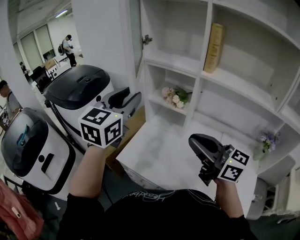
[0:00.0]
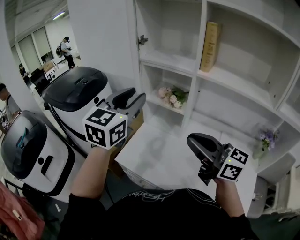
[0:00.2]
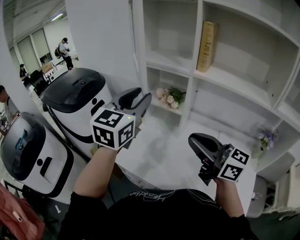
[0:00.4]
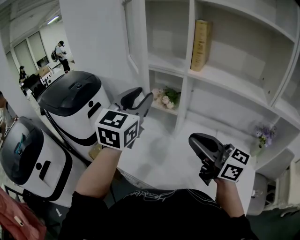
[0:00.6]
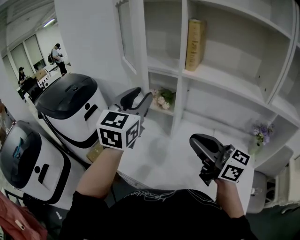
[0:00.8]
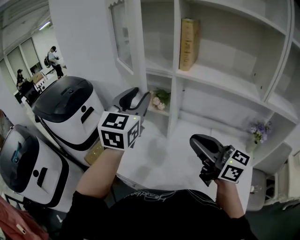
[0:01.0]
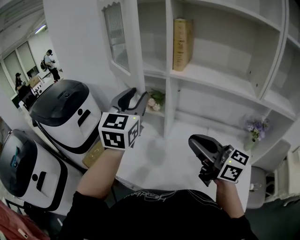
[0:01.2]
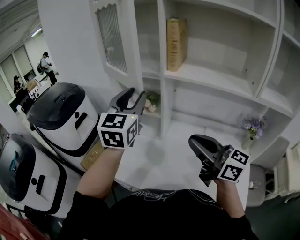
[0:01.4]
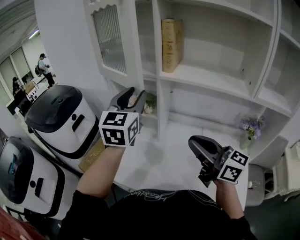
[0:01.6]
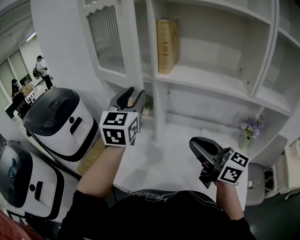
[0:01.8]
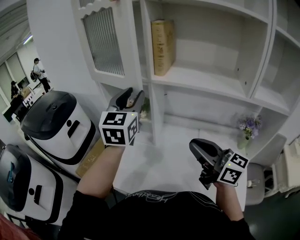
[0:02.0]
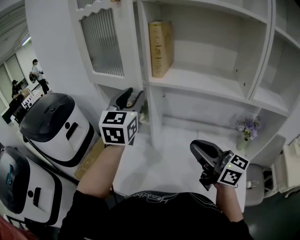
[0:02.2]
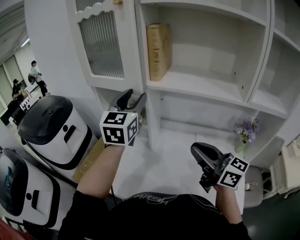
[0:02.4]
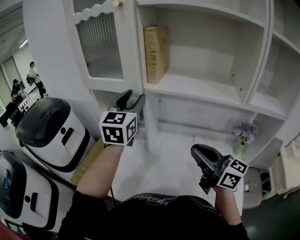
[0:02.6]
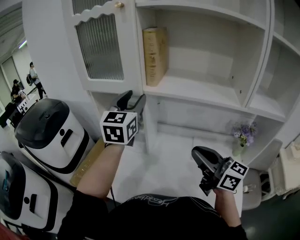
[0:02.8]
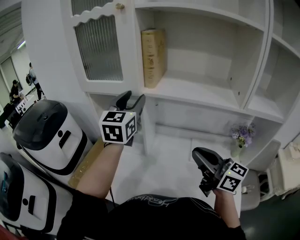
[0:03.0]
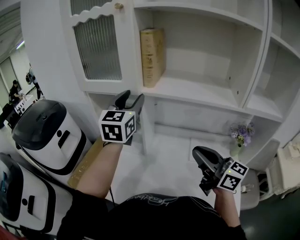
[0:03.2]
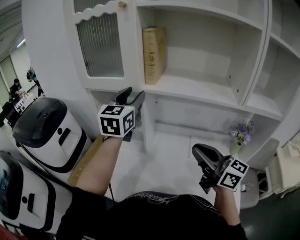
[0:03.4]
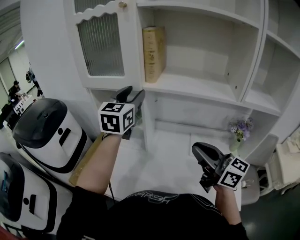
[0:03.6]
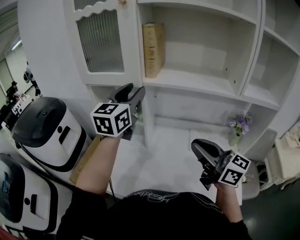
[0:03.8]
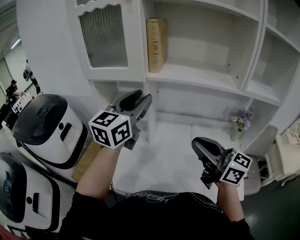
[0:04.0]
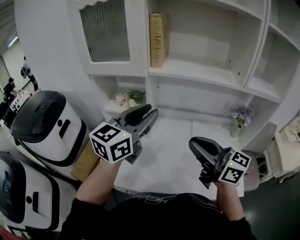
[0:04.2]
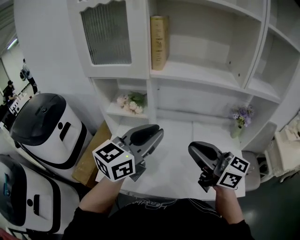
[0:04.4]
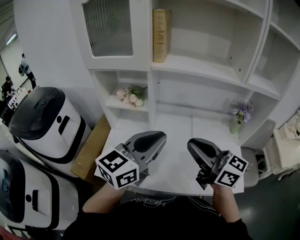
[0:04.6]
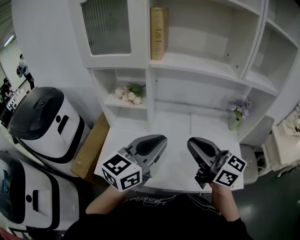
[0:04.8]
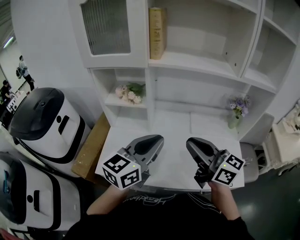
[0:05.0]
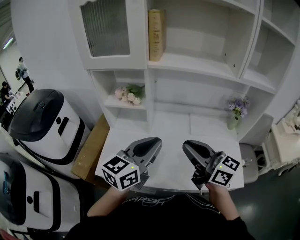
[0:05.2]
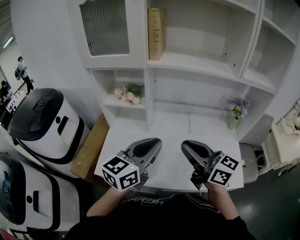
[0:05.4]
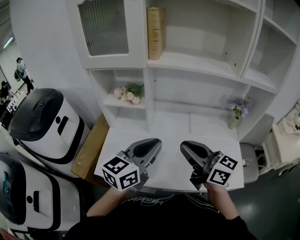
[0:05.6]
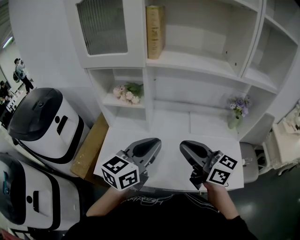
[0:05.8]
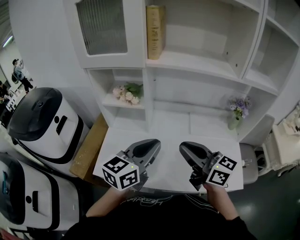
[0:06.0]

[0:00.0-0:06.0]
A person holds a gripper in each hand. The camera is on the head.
0.0 to 1.6 s: Both grippers travel together to the right, roughly 15 cm.
1.6 to 3.0 s: The left gripper goes approximately 10 cm to the right and forward. Meanwhile the right gripper travels to the right by about 10 cm.
3.0 to 4.4 s: The right gripper is displaced to the left and backward by about 10 cm, while the left gripper goes about 20 cm backward, rotates about 40 degrees, and closes its fingers.
4.4 to 6.0 s: The left gripper goes some 10 cm downward. Meanwhile the right gripper goes approximately 5 cm downward.

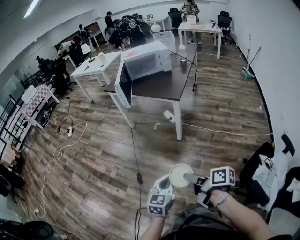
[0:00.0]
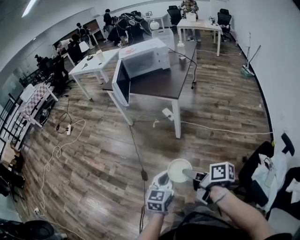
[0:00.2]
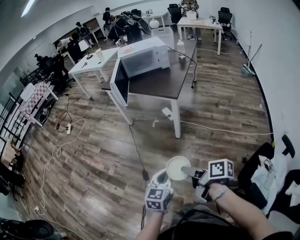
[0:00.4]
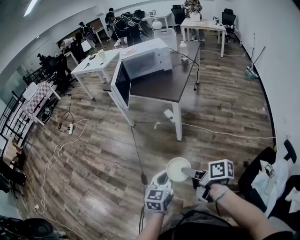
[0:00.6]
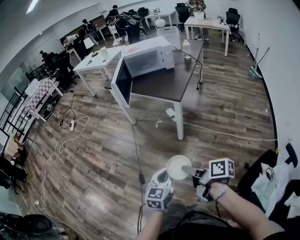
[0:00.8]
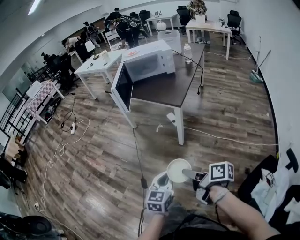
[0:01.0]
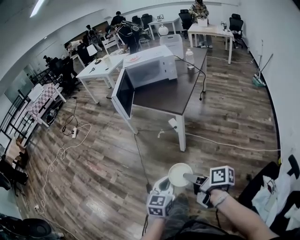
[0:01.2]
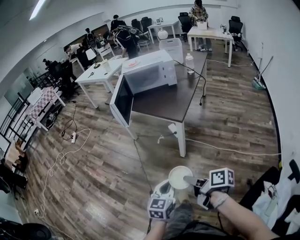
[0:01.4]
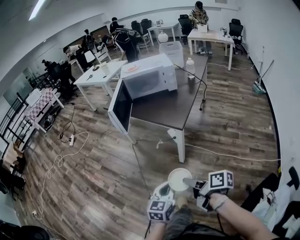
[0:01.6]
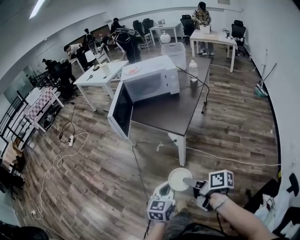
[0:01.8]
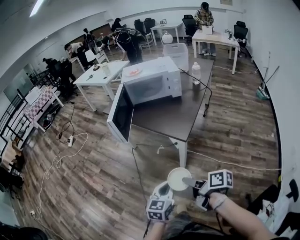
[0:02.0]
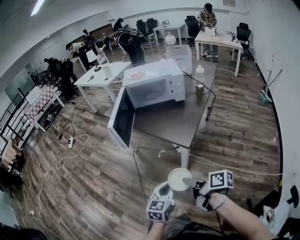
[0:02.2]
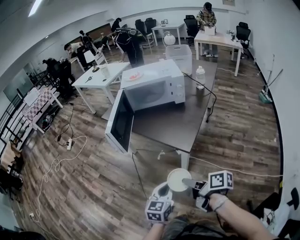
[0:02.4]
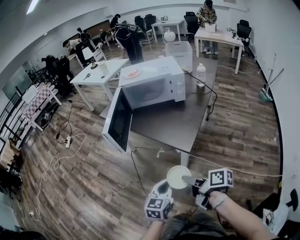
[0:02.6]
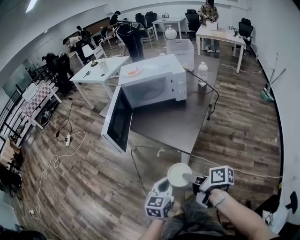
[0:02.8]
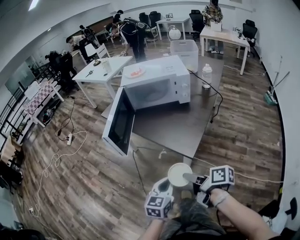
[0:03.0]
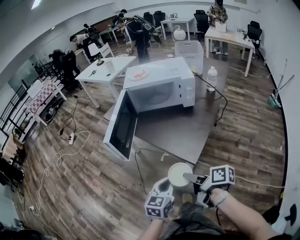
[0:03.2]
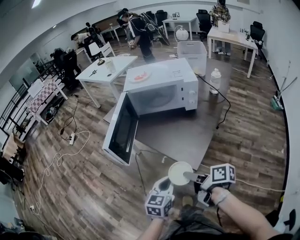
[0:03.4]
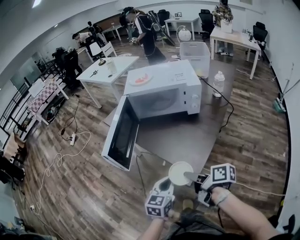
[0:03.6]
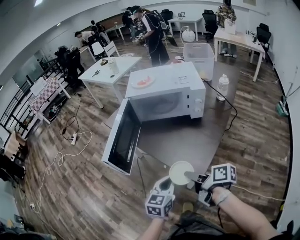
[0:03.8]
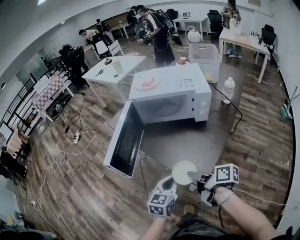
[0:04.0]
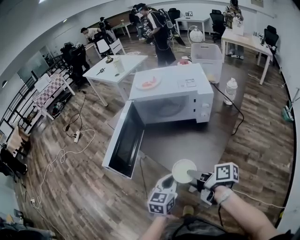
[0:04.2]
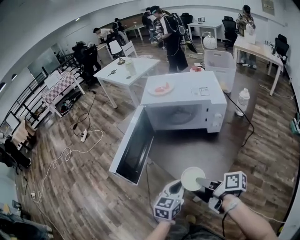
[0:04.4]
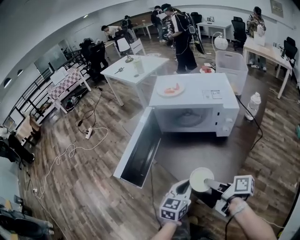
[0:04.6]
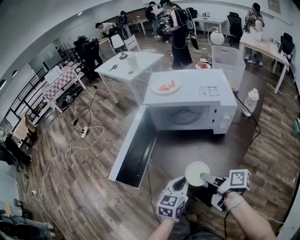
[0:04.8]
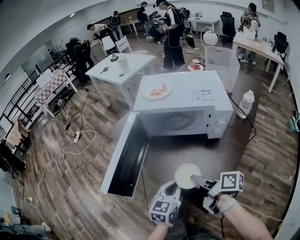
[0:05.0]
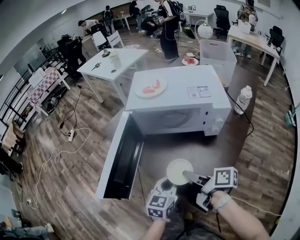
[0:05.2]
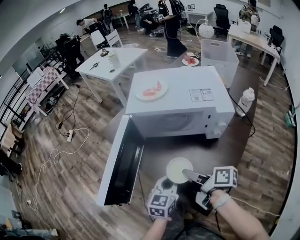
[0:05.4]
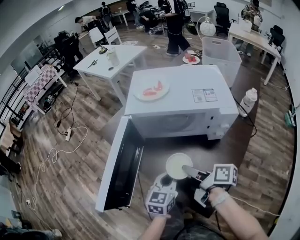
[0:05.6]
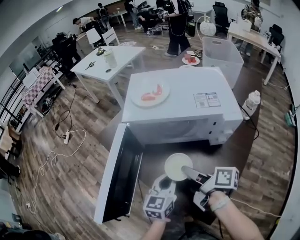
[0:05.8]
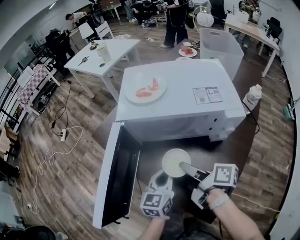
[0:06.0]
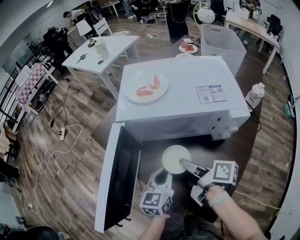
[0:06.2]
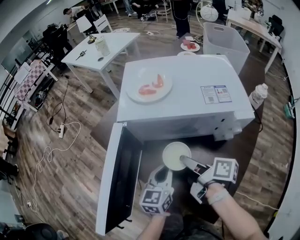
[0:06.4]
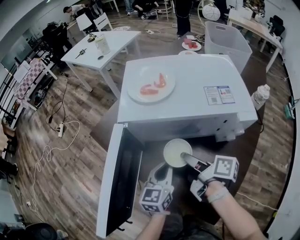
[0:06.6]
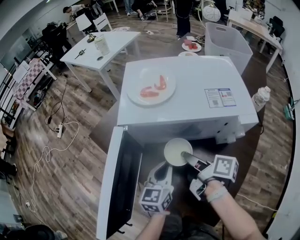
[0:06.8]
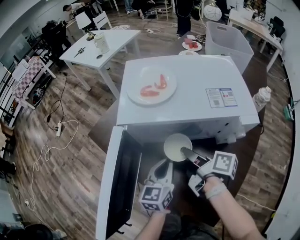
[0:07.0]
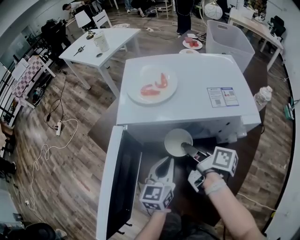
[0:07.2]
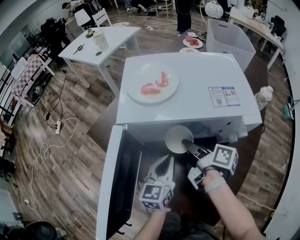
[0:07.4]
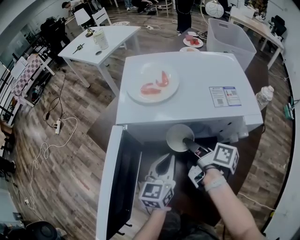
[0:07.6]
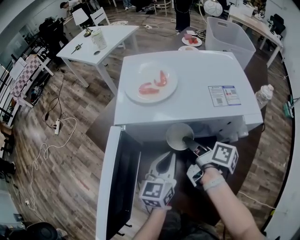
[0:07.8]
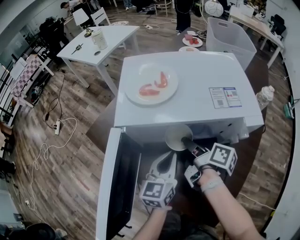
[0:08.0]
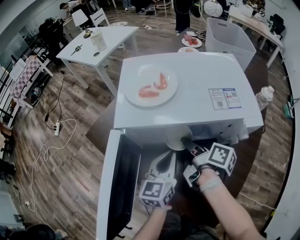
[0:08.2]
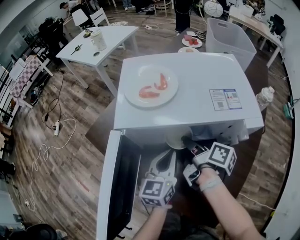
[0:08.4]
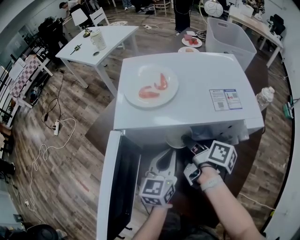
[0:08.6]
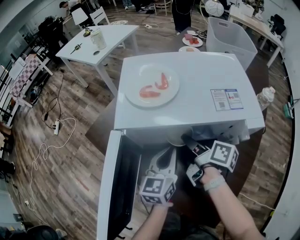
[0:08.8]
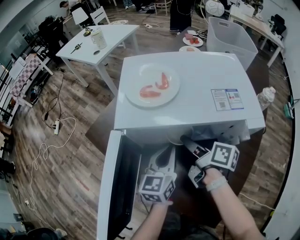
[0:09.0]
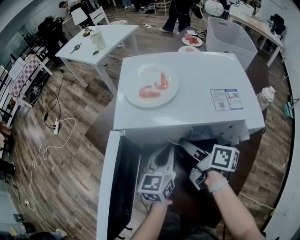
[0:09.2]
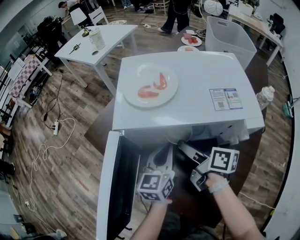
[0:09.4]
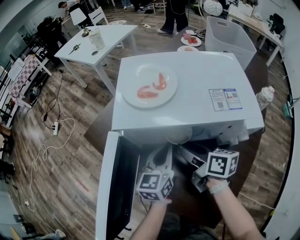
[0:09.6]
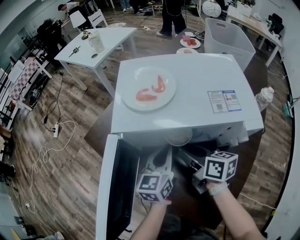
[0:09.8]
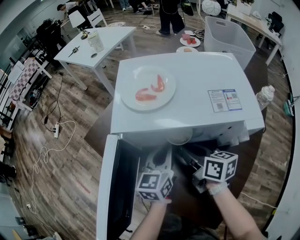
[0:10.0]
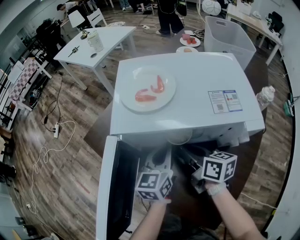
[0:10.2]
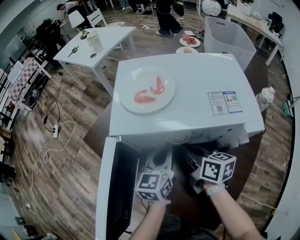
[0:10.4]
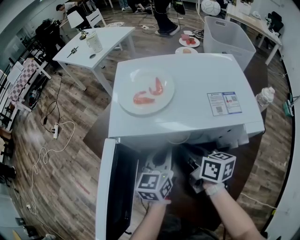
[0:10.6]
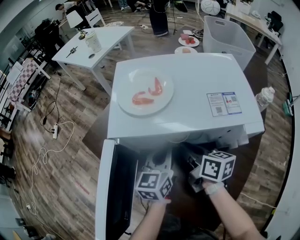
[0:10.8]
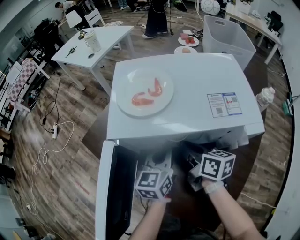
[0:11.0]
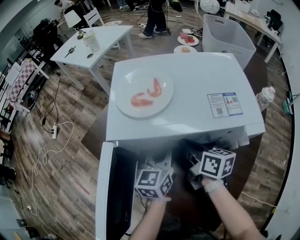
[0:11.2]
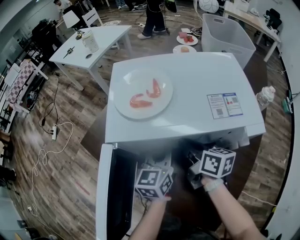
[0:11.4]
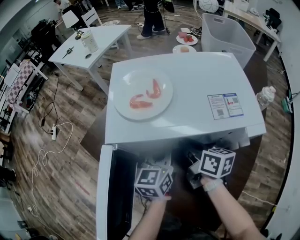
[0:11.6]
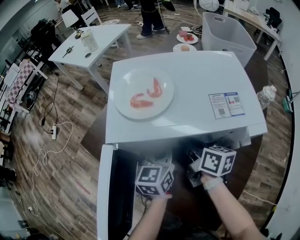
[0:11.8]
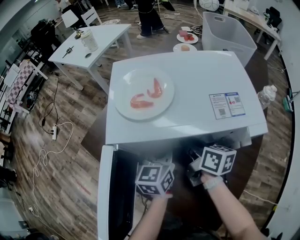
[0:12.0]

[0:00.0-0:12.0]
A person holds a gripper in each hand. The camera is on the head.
0.0 to 1.6 s: The two grippers go approximately 20 cm forward and to the right.
1.6 to 3.0 s: Both grippers travel together forward, about 25 cm.
3.0 to 4.4 s: The grippers both shift forward by some 20 cm.
4.4 to 6.0 s: Both grippers travel together forward, roughly 20 cm.
6.0 to 7.6 s: The grippers both shift forward by roughly 10 cm.
7.6 to 9.0 s: The grippers move only a little.
9.0 to 10.4 s: The right gripper changes its angle by roughly 30 degrees, and closes.
10.4 to 12.0 s: The grippers make only small movements.

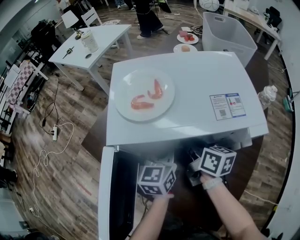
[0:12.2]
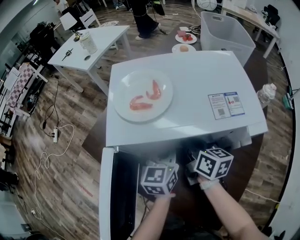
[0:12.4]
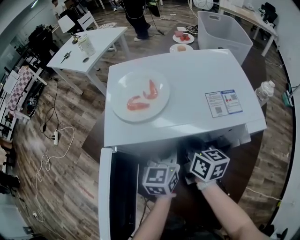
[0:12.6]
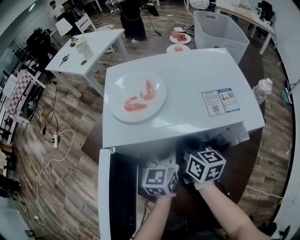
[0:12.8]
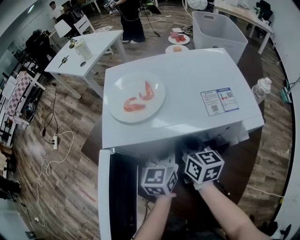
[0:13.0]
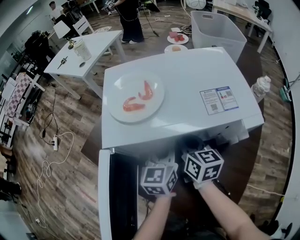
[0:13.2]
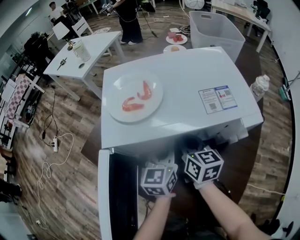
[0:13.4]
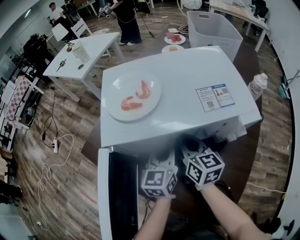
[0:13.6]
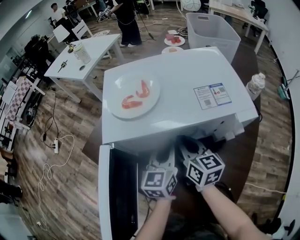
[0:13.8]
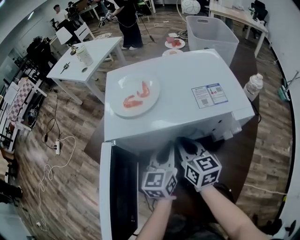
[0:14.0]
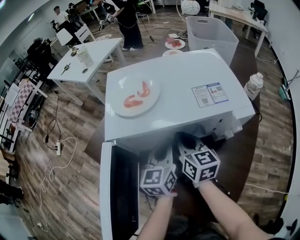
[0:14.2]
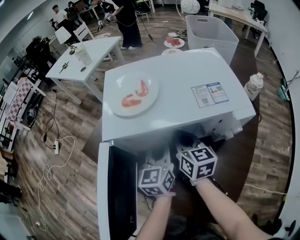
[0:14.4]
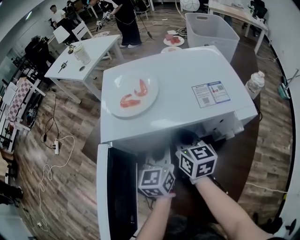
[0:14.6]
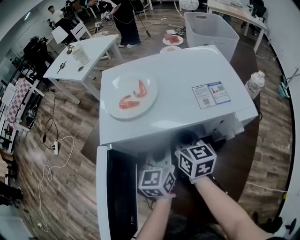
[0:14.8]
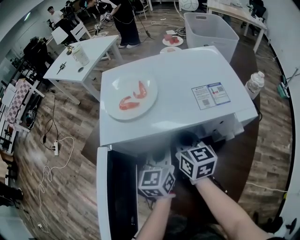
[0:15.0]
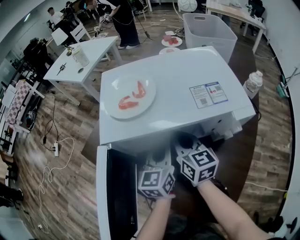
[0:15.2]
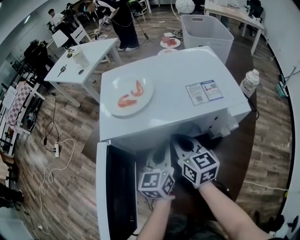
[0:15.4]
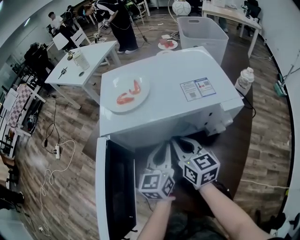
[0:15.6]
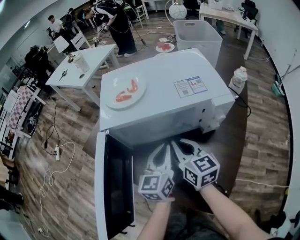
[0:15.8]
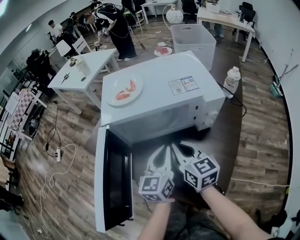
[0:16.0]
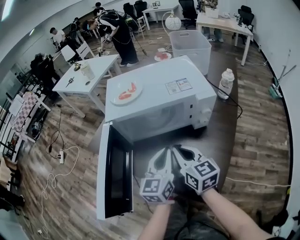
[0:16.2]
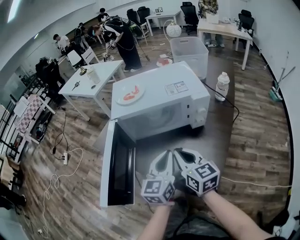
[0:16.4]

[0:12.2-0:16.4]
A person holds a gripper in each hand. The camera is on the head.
12.2 to 13.6 s: The right gripper changes its angle by about 20 degrees.
13.6 to 15.0 s: The grippers stay close to where they were, moving slightly.
15.0 to 16.4 s: The left gripper travels backward and upward by approximately 20 cm, while the right gripper shifts roughly 20 cm backward.

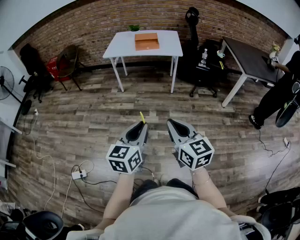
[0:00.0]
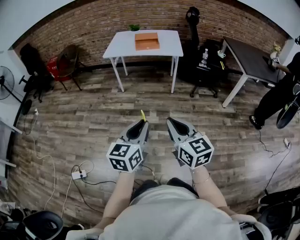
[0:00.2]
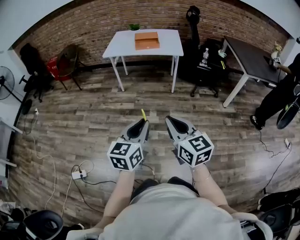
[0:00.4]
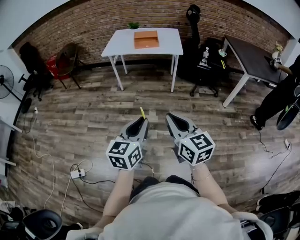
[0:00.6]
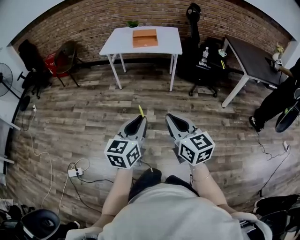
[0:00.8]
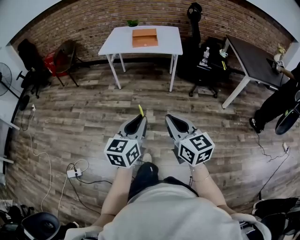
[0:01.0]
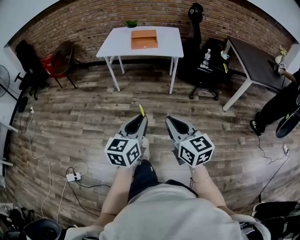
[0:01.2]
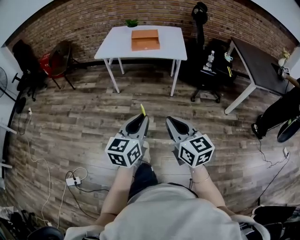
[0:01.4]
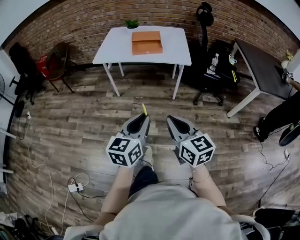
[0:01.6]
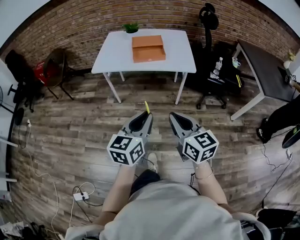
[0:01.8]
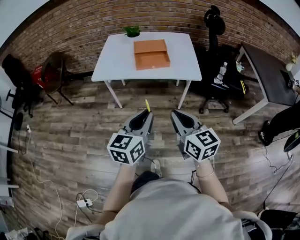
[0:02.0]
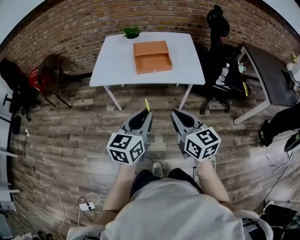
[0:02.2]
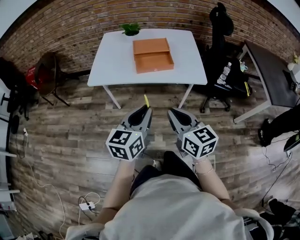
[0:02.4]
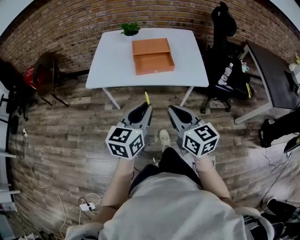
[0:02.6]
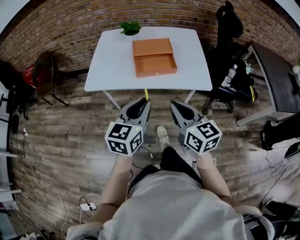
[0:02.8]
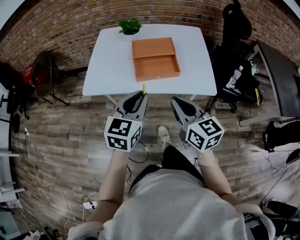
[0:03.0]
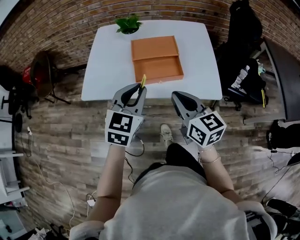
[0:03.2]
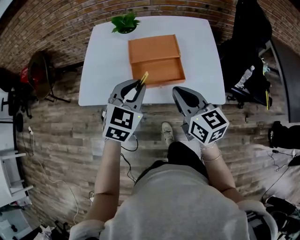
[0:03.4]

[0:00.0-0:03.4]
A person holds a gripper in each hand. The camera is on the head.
0.0 to 1.6 s: Both grippers travel together forward, approximately 30 cm.
1.6 to 3.4 s: The two grippers travel together, forward, roughly 60 cm. The left gripper swivels approximately 40 degrees.
